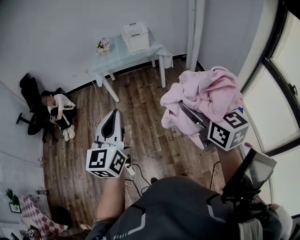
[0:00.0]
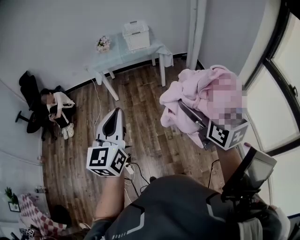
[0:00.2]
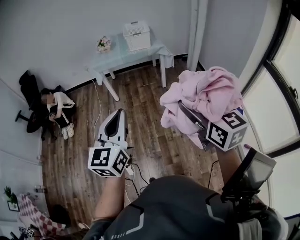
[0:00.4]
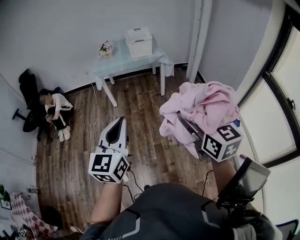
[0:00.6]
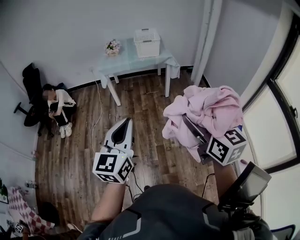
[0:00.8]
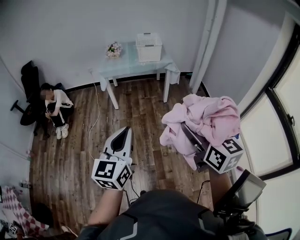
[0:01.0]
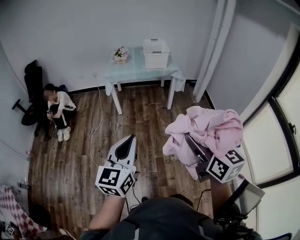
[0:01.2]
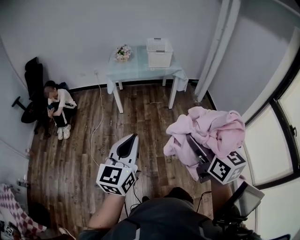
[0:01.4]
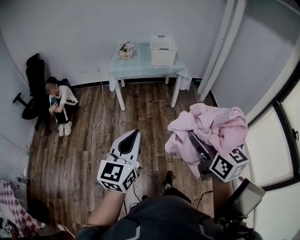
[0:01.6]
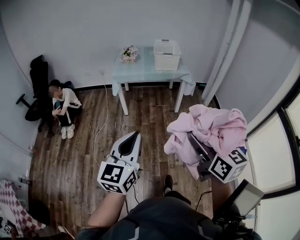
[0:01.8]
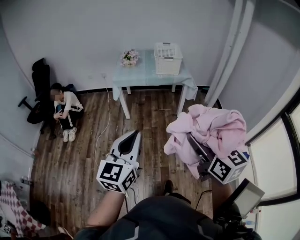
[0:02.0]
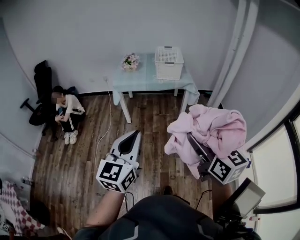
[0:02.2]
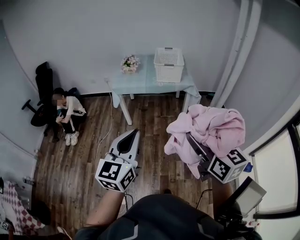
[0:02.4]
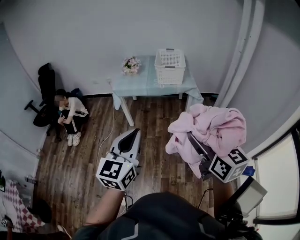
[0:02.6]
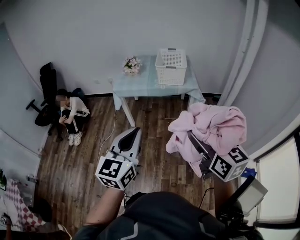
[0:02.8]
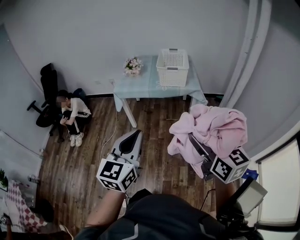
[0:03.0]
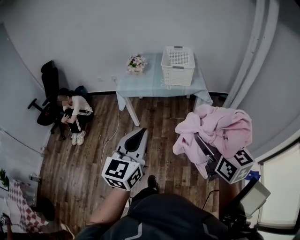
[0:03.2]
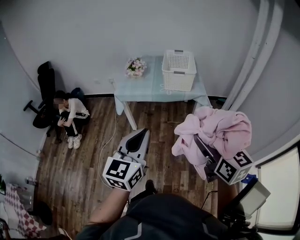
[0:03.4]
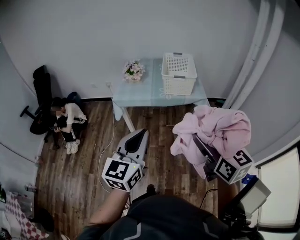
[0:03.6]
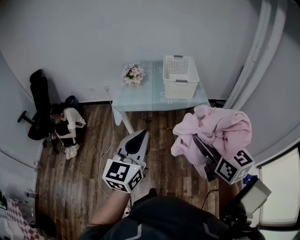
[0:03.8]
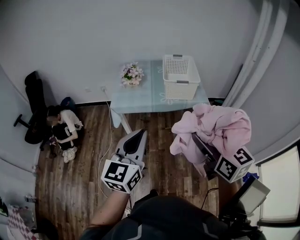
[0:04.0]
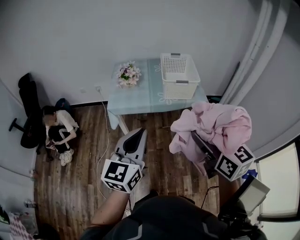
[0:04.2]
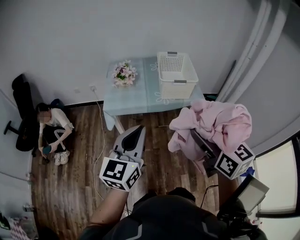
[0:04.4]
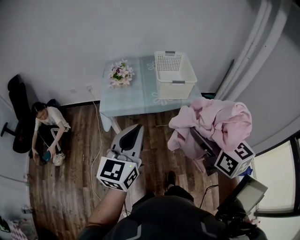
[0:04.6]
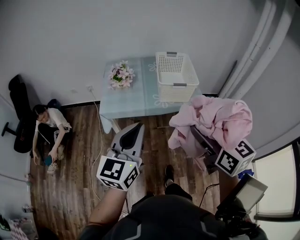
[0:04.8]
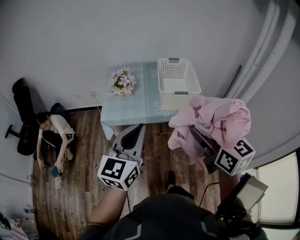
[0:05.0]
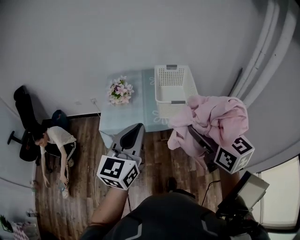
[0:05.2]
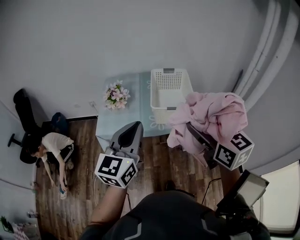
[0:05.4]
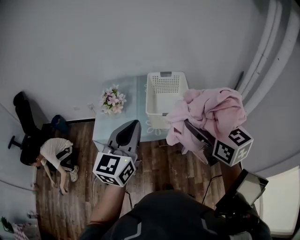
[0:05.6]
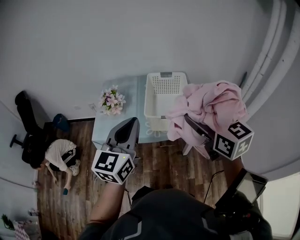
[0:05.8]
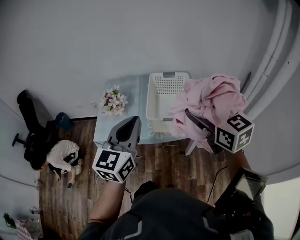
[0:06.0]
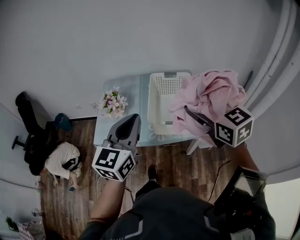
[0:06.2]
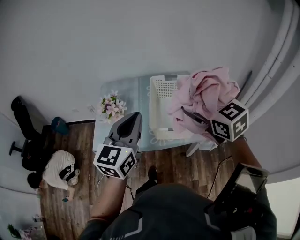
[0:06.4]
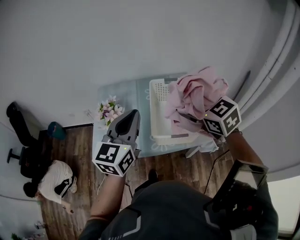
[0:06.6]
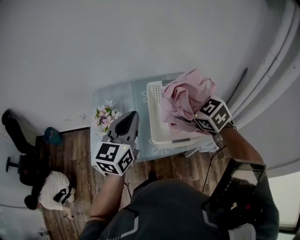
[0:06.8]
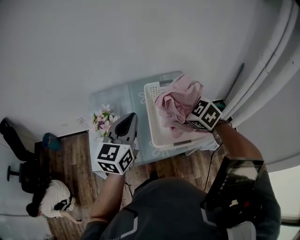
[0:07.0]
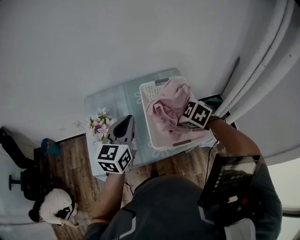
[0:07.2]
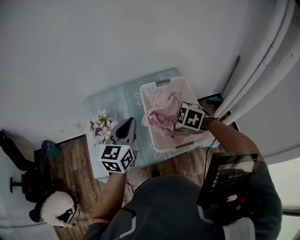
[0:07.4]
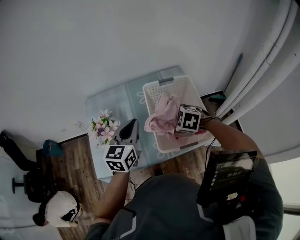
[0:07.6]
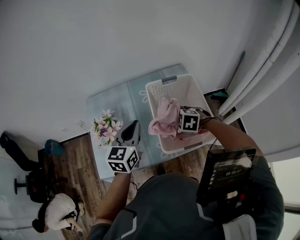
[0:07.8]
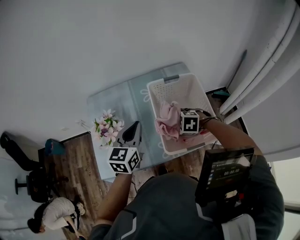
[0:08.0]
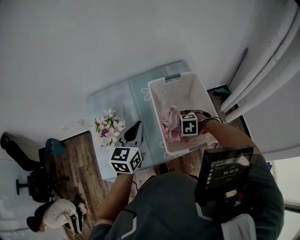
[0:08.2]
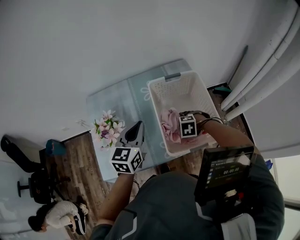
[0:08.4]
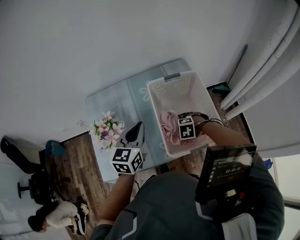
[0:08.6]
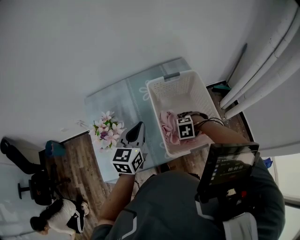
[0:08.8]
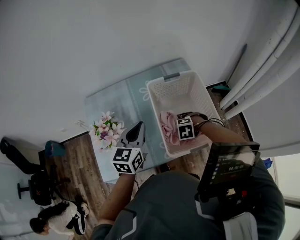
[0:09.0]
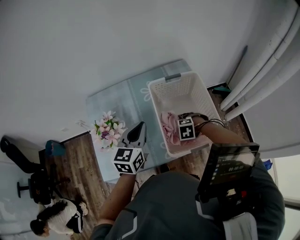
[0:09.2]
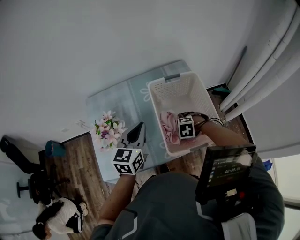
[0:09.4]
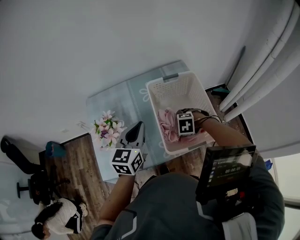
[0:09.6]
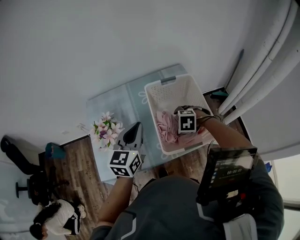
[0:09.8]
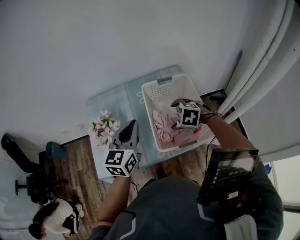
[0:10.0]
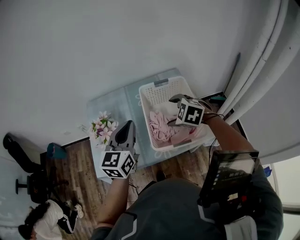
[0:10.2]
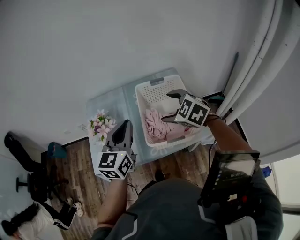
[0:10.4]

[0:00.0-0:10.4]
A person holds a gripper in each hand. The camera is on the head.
0:00.0 to 0:01.4: The left gripper shifts roughly 10 cm to the left and downward; the right gripper is displaced to the left by about 10 cm.
0:01.4 to 0:03.0: Both grippers travel together forward, about 30 cm.
0:03.0 to 0:04.4: Both grippers move forward and to the left, some 25 cm.
0:04.4 to 0:06.0: The left gripper moves forward and to the right, some 30 cm, while the right gripper goes approximately 35 cm forward.
0:06.0 to 0:07.4: The left gripper heads forward and downward, covering about 25 cm, while the right gripper moves downward and forward, about 30 cm, and tilts its fingers about 40 degrees downward.
0:07.4 to 0:09.0: The right gripper travels downward by approximately 20 cm, and swivels some 30 degrees, while the left gripper is displaced downward by approximately 5 cm.
0:09.0 to 0:10.4: The left gripper travels upward by about 10 cm. Meanwhile the right gripper shifts approximately 25 cm upward, and points its fingers about 40 degrees further upward.

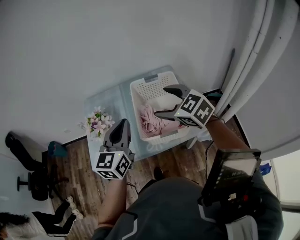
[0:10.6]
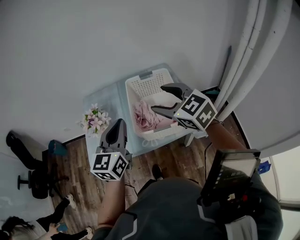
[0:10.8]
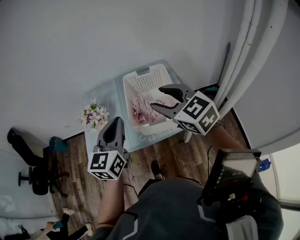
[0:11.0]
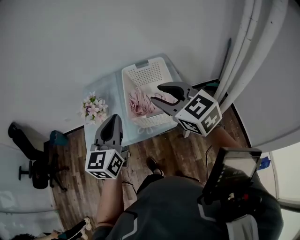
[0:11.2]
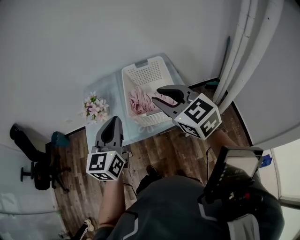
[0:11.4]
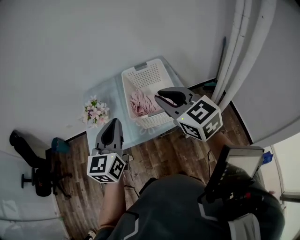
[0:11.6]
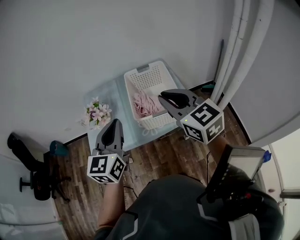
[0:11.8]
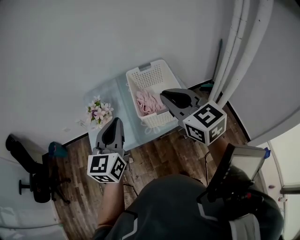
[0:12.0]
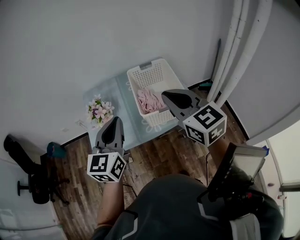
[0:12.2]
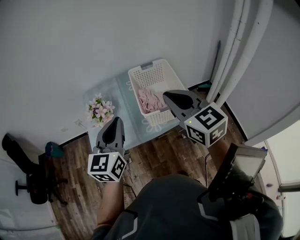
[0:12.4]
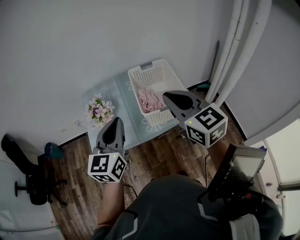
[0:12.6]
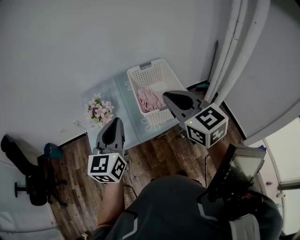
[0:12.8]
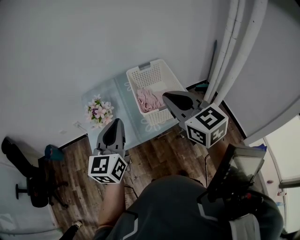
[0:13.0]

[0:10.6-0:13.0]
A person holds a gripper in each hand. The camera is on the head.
0:10.6 to 0:11.8: The left gripper travels backward by roughly 10 cm. Meanwhile the right gripper goes some 15 cm backward and upward, changes its angle by about 30 degrees, and closes its fingers.
0:11.8 to 0:13.0: The left gripper shifts by approximately 5 cm, while the right gripper changes place by approximately 5 cm.

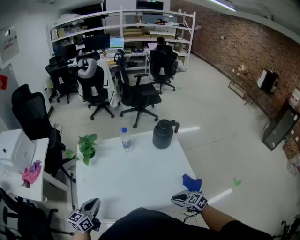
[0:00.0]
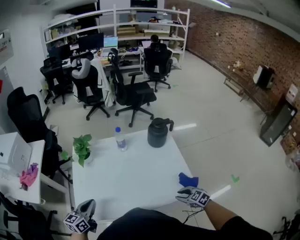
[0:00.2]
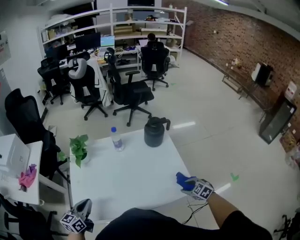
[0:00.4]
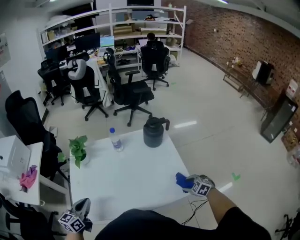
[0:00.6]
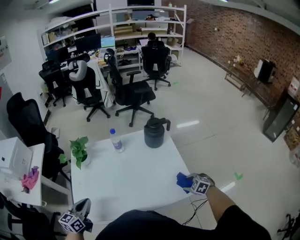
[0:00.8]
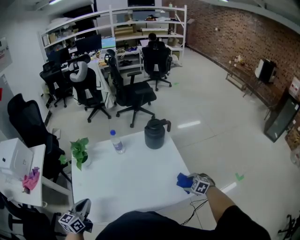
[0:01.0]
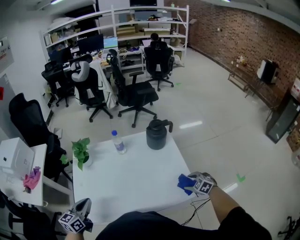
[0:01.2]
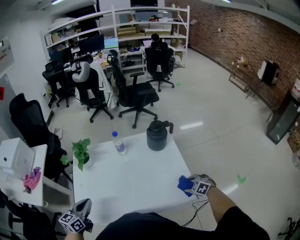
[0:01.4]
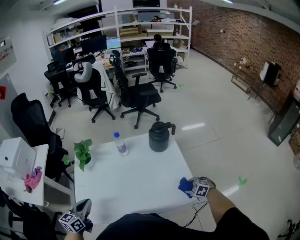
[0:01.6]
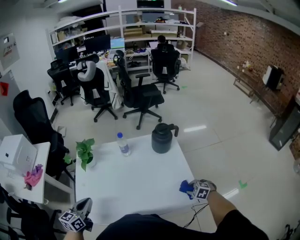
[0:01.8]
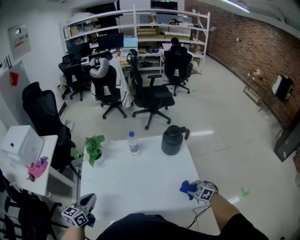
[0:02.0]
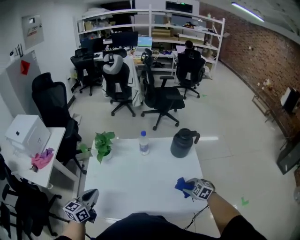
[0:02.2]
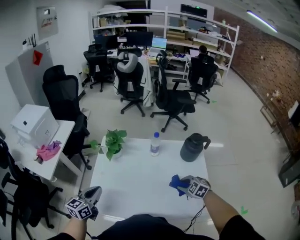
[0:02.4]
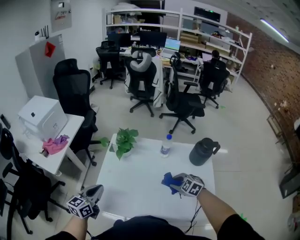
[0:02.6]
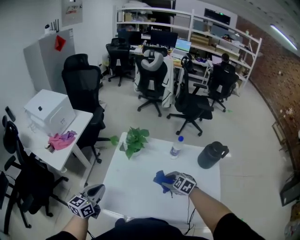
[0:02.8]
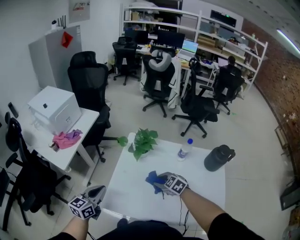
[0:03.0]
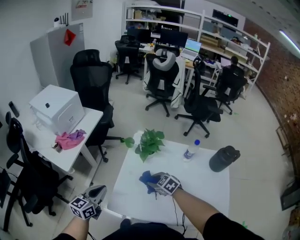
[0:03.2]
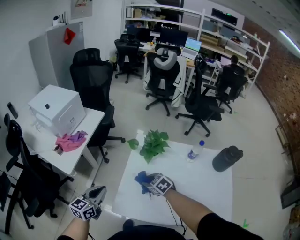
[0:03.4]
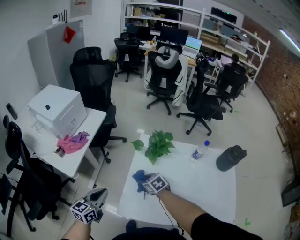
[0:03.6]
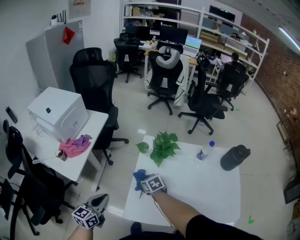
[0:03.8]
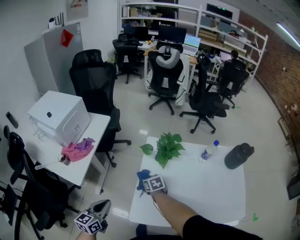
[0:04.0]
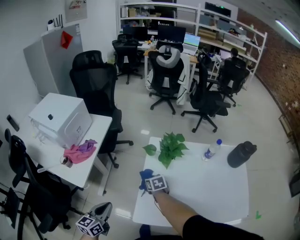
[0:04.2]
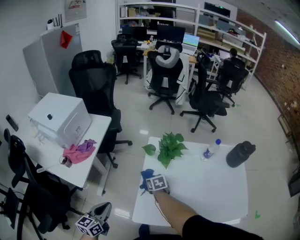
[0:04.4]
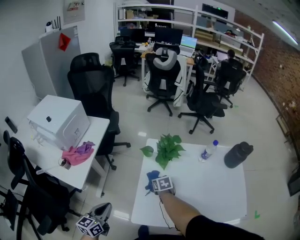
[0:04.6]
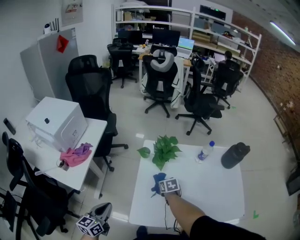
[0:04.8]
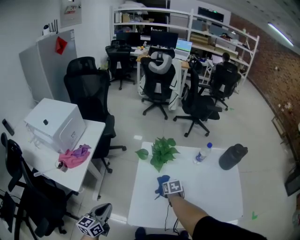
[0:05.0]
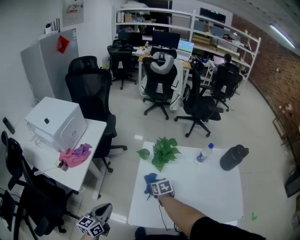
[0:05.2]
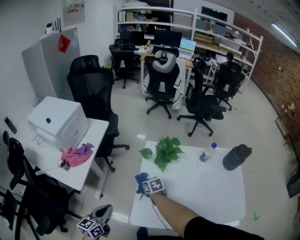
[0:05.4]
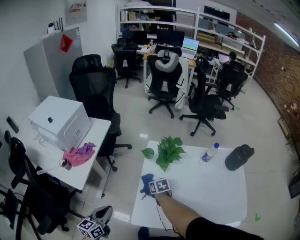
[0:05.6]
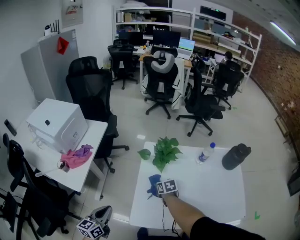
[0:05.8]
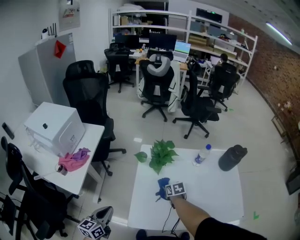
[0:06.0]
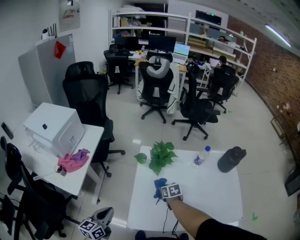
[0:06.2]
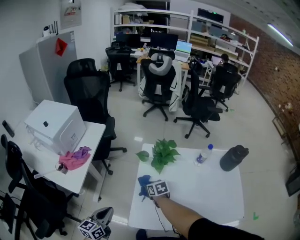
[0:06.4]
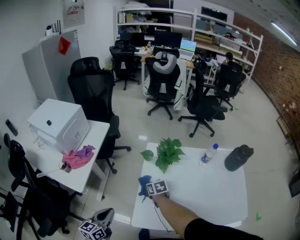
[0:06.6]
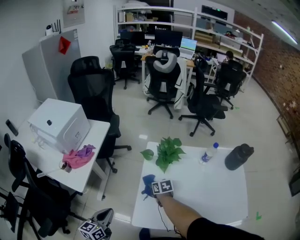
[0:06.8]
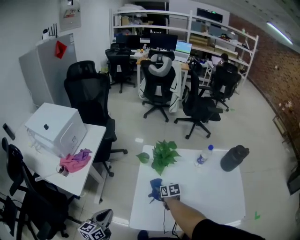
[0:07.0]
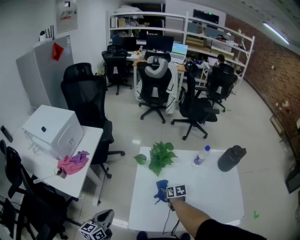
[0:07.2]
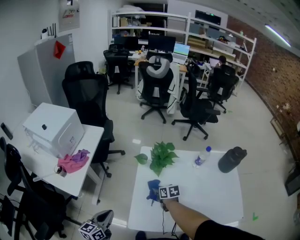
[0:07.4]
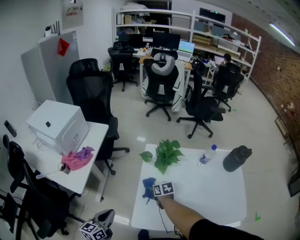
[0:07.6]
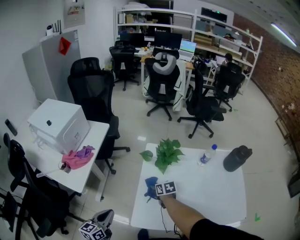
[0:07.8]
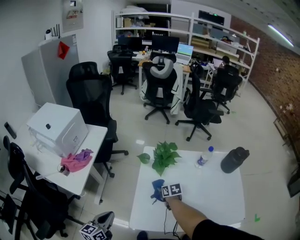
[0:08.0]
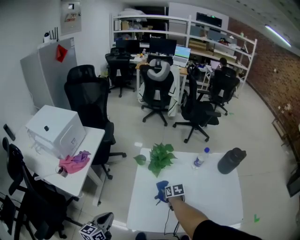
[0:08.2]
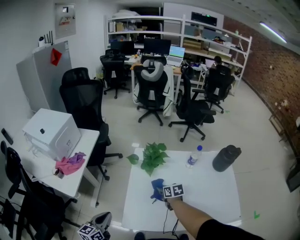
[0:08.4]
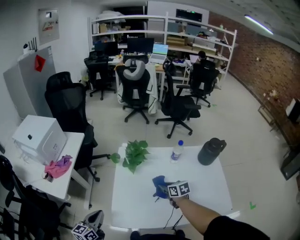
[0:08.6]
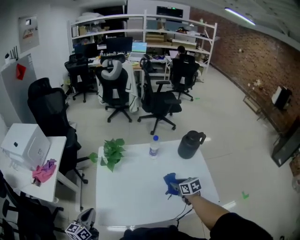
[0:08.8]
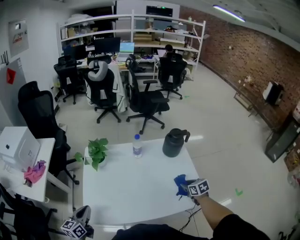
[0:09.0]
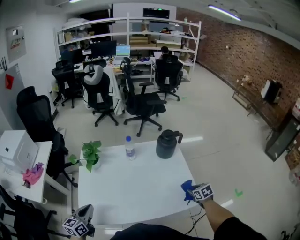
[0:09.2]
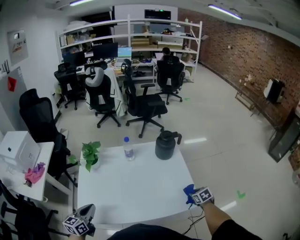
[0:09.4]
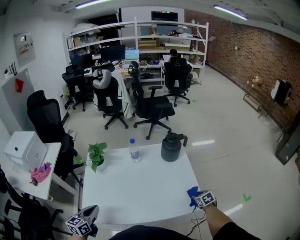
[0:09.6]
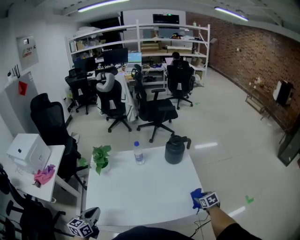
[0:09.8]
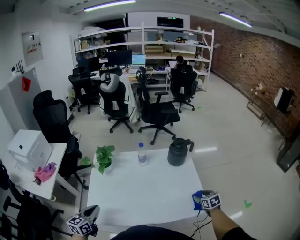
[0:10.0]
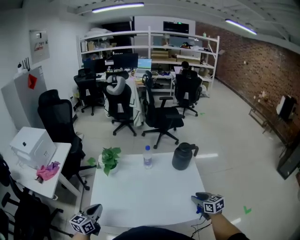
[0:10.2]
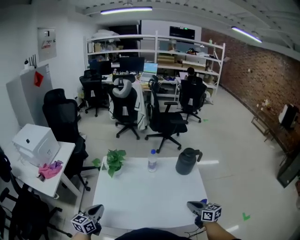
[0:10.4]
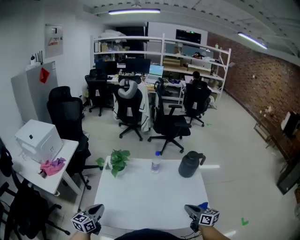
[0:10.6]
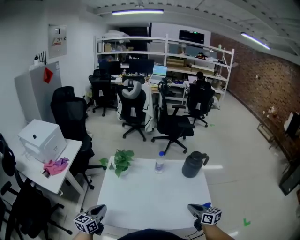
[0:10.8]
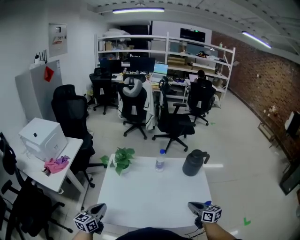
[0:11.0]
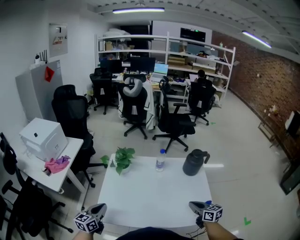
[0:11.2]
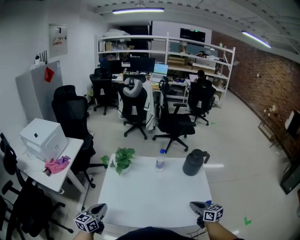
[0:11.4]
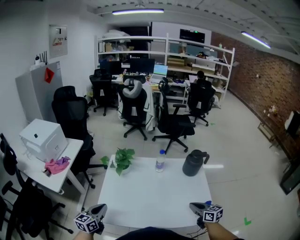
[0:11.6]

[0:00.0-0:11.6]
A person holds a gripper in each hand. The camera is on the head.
0:00.0 to 0:01.4: The right gripper goes roughly 20 cm to the right and forward, swivels roughly 30 degrees, and opens.
0:01.4 to 0:02.8: The right gripper goes about 40 cm to the left and forward, turns by approximately 30 degrees, and closes up; the left gripper goes some 15 cm to the left.
0:02.8 to 0:04.4: The left gripper is displaced to the left by roughly 20 cm; the right gripper moves to the left, forward and downward, some 35 cm, and twists roughly 50 degrees clockwise, seen from behind.
0:04.4 to 0:05.8: The right gripper moves left and right over some 15 cm, changing direction 2 times.
0:05.8 to 0:07.2: The right gripper swings left and right, some 15 cm each way, with 2 reversals.
0:07.2 to 0:08.8: The left gripper heads to the right, covering about 10 cm. Meanwhile the right gripper moves to the right and backward, roughly 30 cm.
0:08.8 to 0:10.2: The left gripper travels to the right by about 10 cm. Meanwhile the right gripper shifts about 20 cm to the right and backward.
0:10.2 to 0:11.6: The right gripper moves to the left, roughly 10 cm, and closes its fingers.
